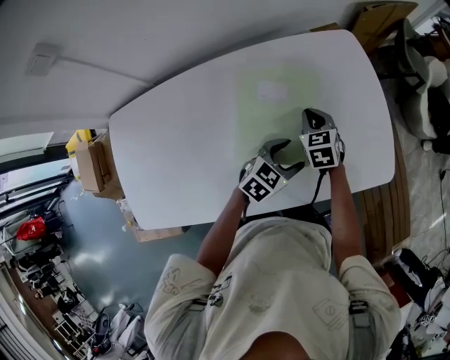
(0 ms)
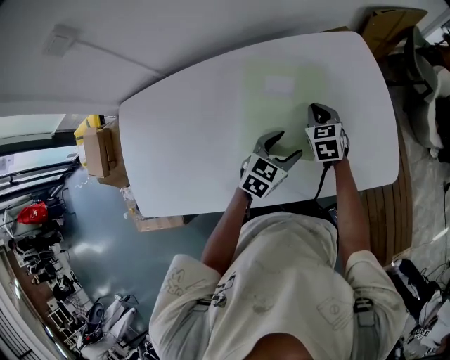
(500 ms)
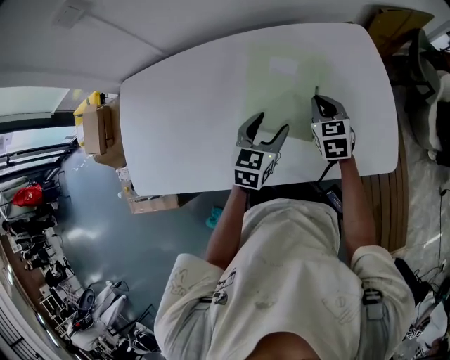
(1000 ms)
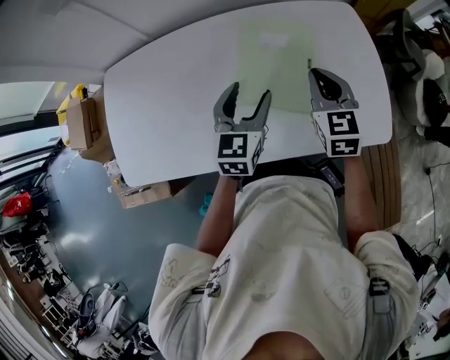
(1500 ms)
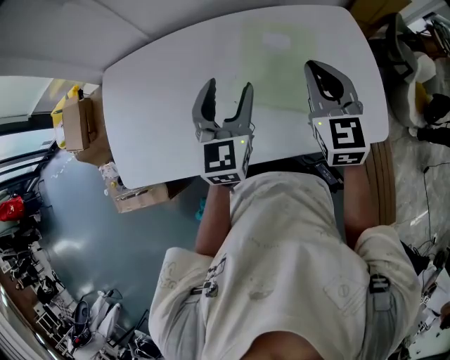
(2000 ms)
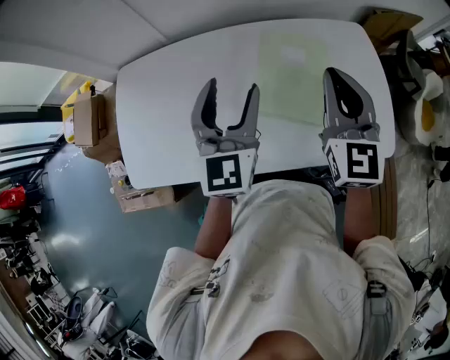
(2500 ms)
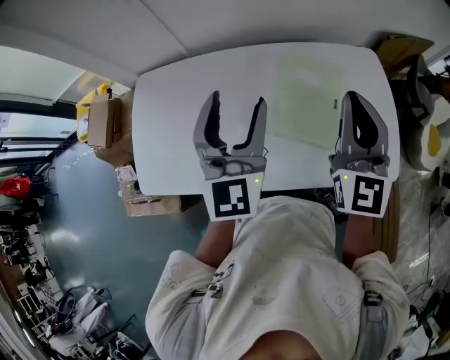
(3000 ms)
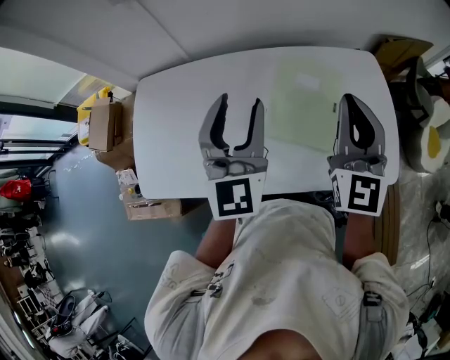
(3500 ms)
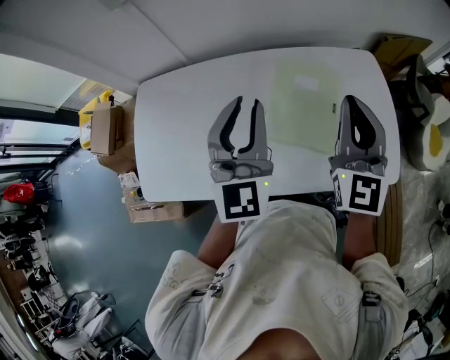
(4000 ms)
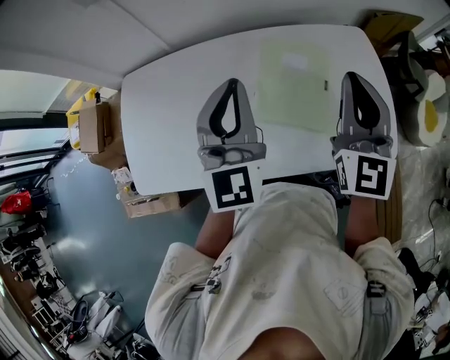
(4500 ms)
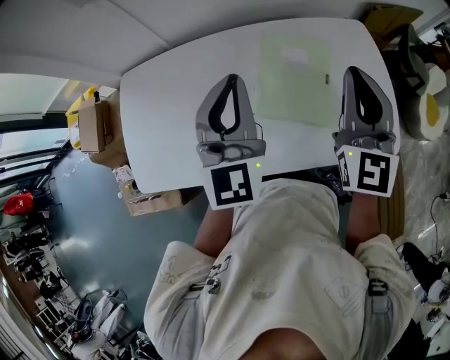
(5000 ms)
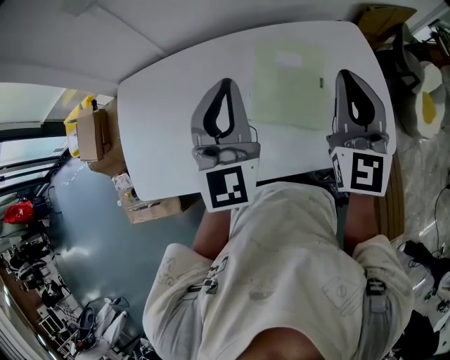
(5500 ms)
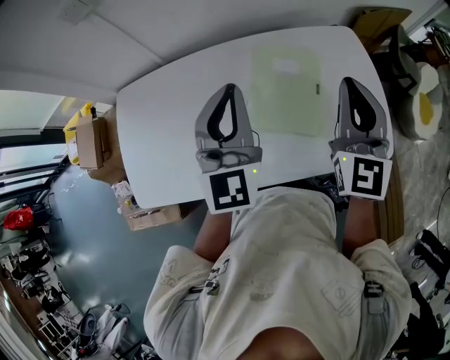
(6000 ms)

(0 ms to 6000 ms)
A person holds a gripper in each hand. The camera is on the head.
0 ms - 2000 ms: Both grippers move upward, about 20 cm. The left gripper rotates roughly 60 degrees. Meanwhile the right gripper swivels roughly 30 degrees.
2000 ms - 4000 ms: Both grippers travel together upward, about 10 cm. The left gripper closes up.
4000 ms - 6000 ms: The grippers move only a little.

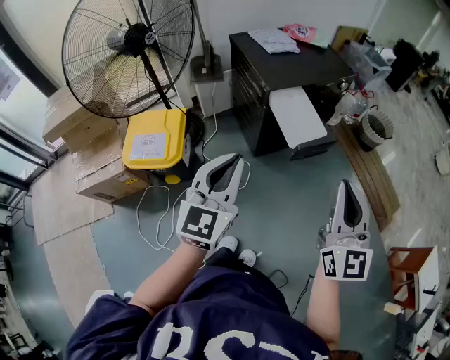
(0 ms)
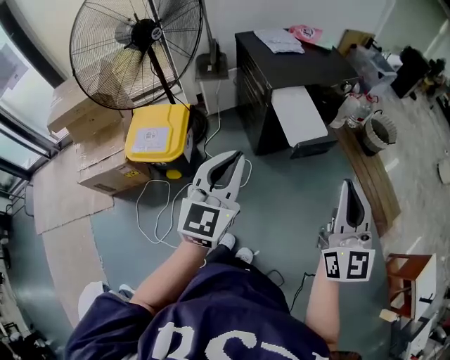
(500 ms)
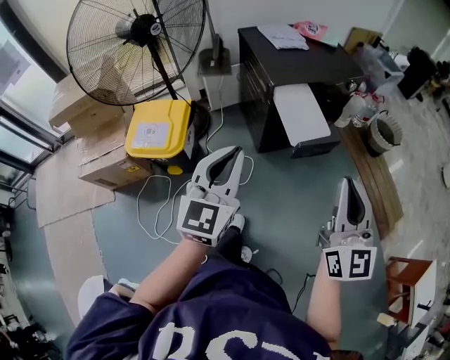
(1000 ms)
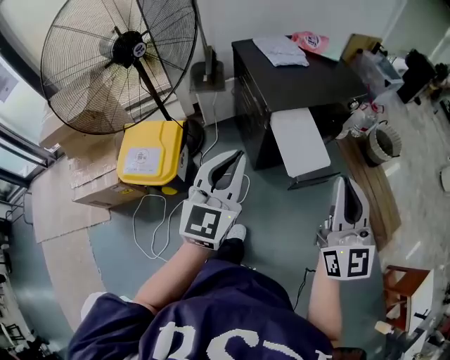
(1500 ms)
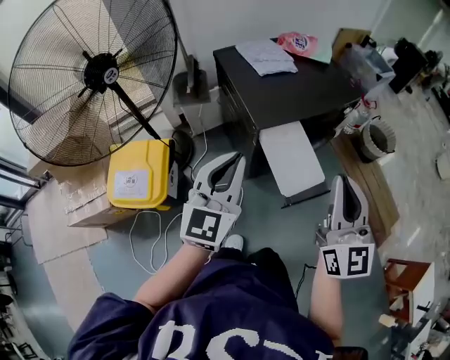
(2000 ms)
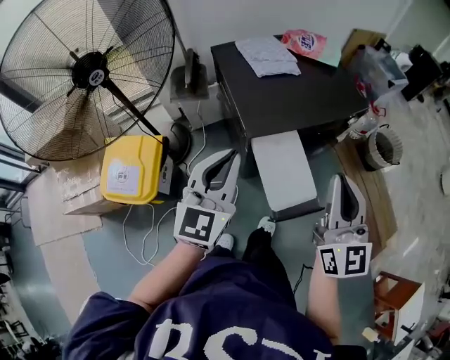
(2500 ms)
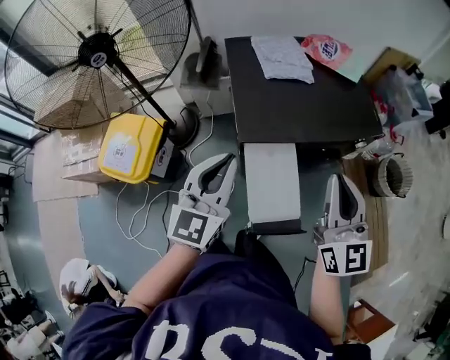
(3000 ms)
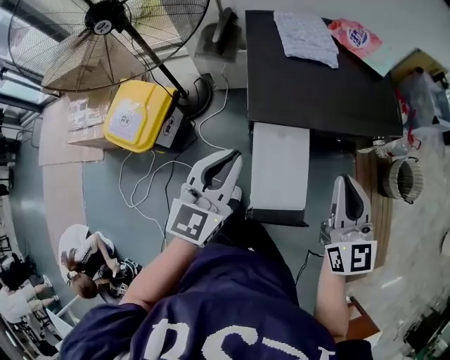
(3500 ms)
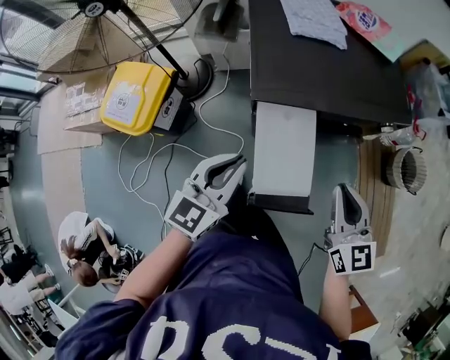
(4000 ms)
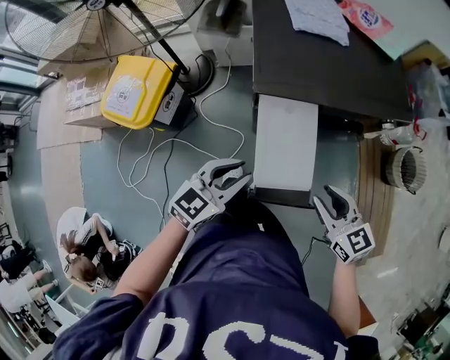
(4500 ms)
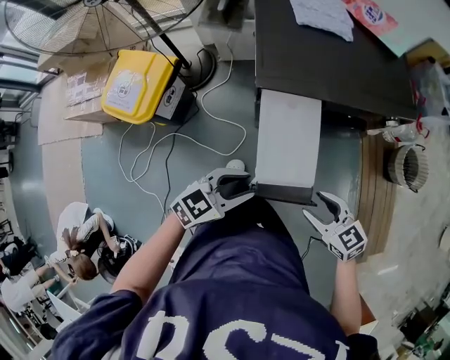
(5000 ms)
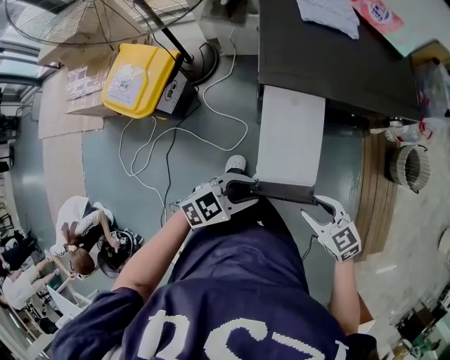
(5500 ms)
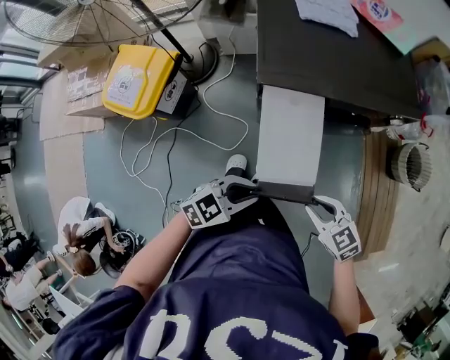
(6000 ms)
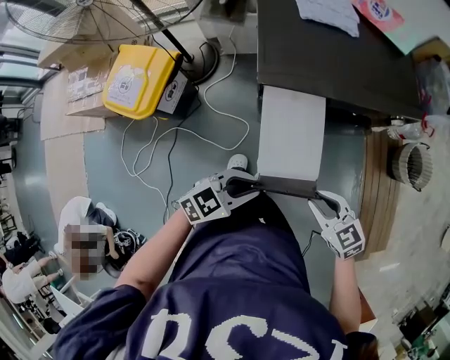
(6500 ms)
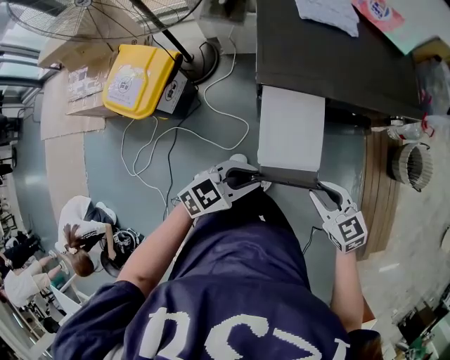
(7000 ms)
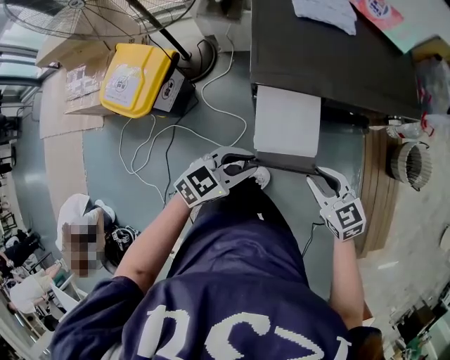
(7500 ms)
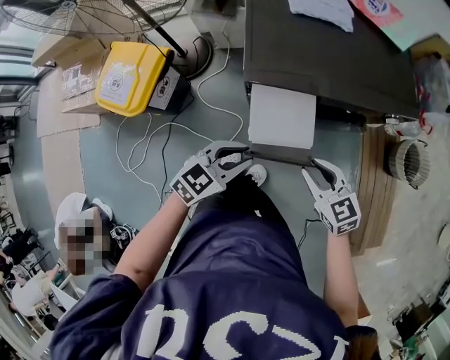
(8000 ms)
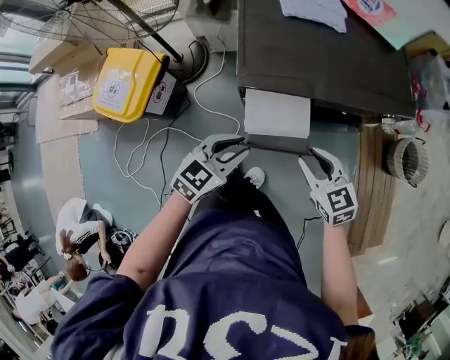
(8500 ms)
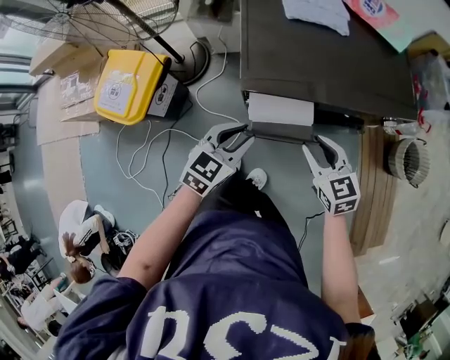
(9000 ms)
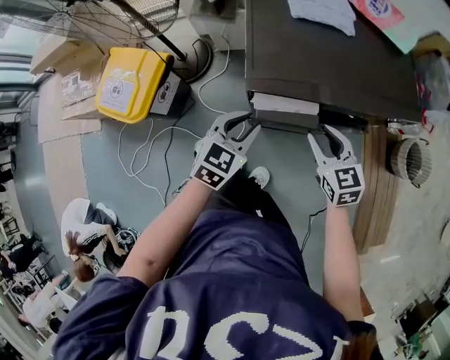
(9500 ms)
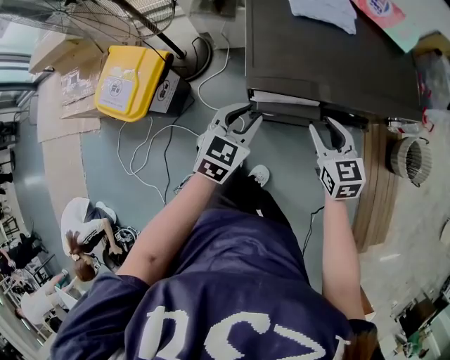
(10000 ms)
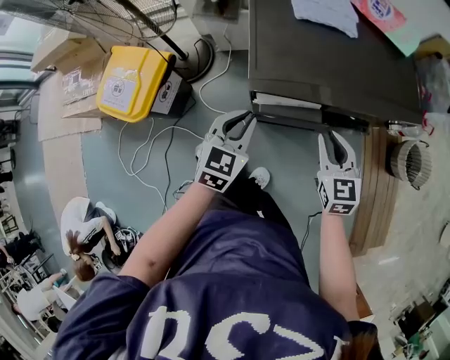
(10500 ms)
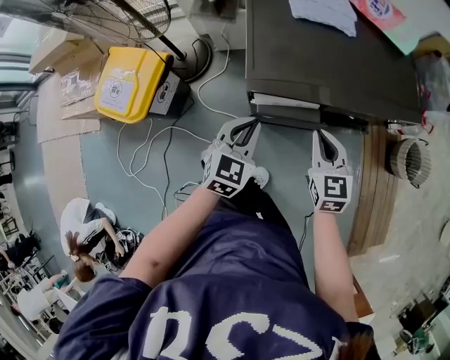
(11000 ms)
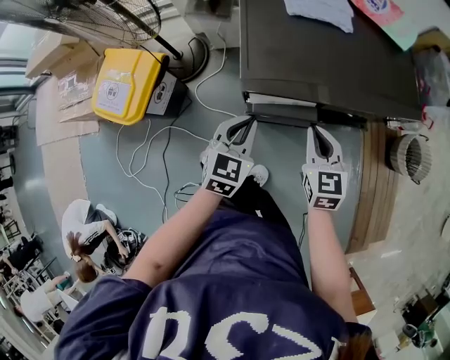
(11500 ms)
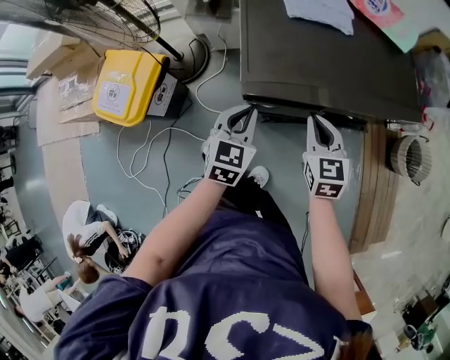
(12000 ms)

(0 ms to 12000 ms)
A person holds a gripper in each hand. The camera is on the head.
0 ms - 2000 ms: The two grippers go some 30 cm forward.
2000 ms - 4000 ms: The left gripper is displaced downward and to the right by some 25 cm, and swivels about 20 degrees. Meanwhile the right gripper goes about 30 cm downward, to the right and forward, and rotates roughly 40 degrees.
4000 ms - 6000 ms: Both grippers travel together downward, about 15 cm. The right gripper turns by about 40 degrees, and opens up, while the left gripper changes its angle by approximately 40 degrees.
6000 ms - 8000 ms: The left gripper shifts by some 10 cm; the right gripper shifts by roughly 10 cm.
8000 ms - 10000 ms: The two grippers go some 15 cm forward. The left gripper changes its angle by about 20 degrees.
10000 ms - 12000 ms: The right gripper closes up, while the left gripper closes its fingers.

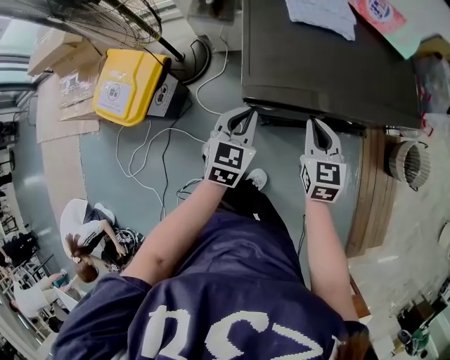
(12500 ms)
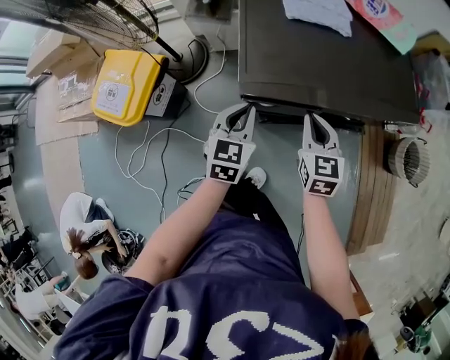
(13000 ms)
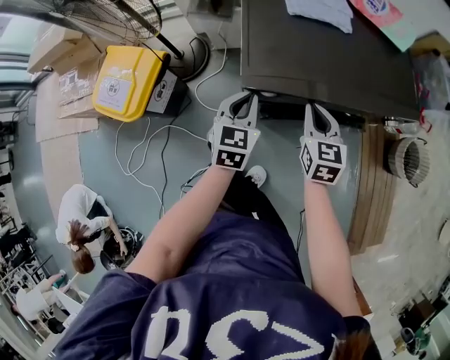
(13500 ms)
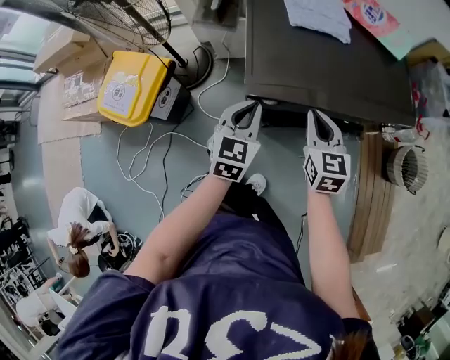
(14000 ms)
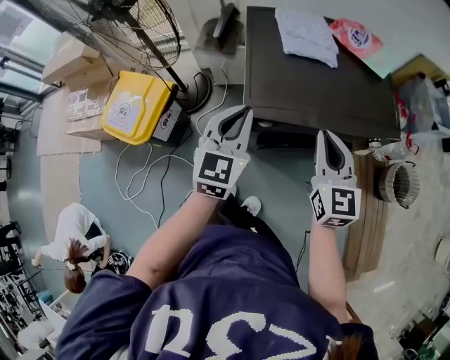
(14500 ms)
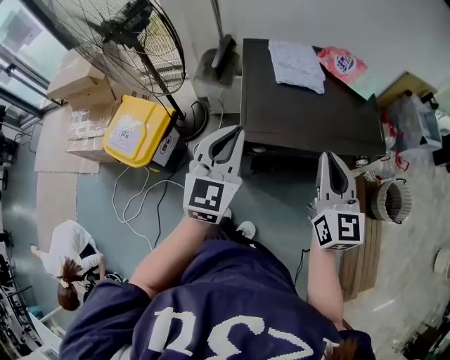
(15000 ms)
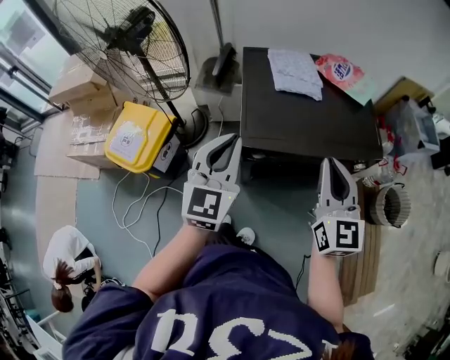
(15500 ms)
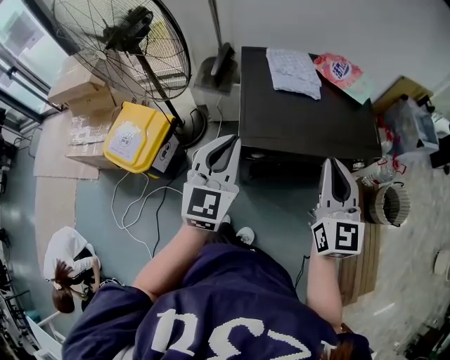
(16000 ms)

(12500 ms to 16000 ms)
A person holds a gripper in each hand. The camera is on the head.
12500 ms - 14500 ms: Both grippers move upward, approximately 15 cm.
14500 ms - 16000 ms: Both grippers move upward, approximately 10 cm.

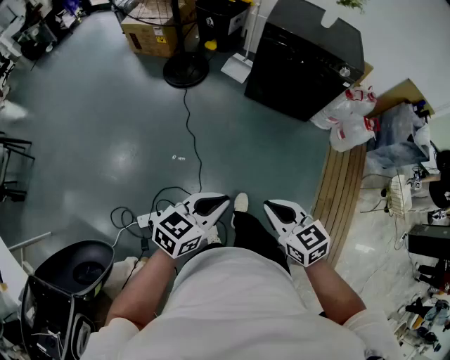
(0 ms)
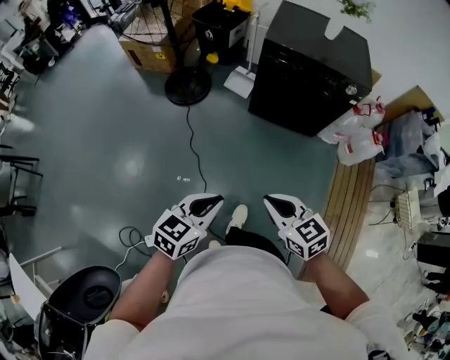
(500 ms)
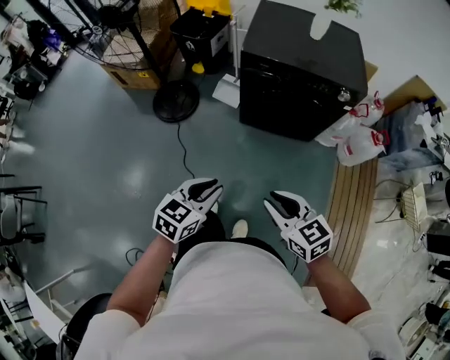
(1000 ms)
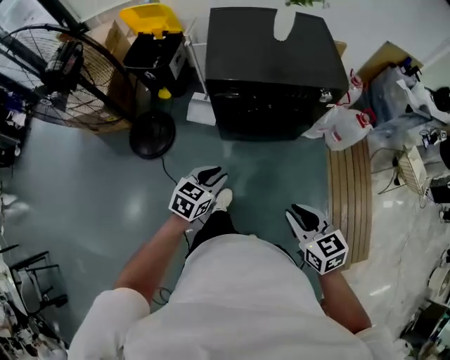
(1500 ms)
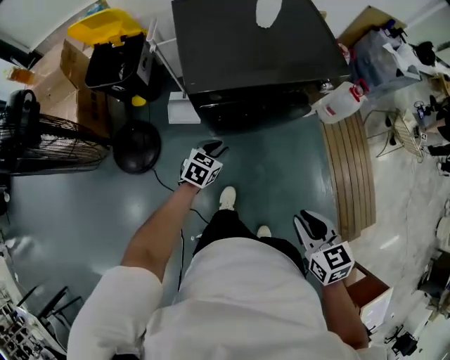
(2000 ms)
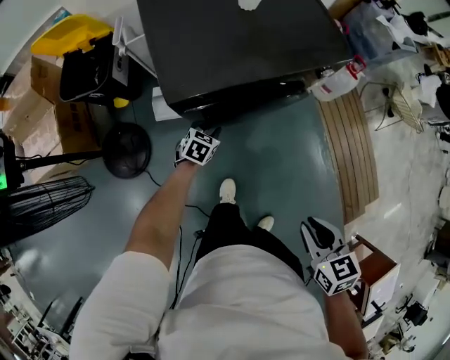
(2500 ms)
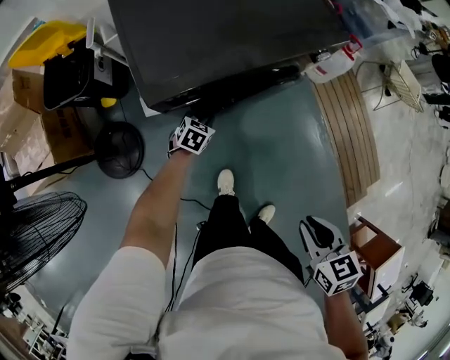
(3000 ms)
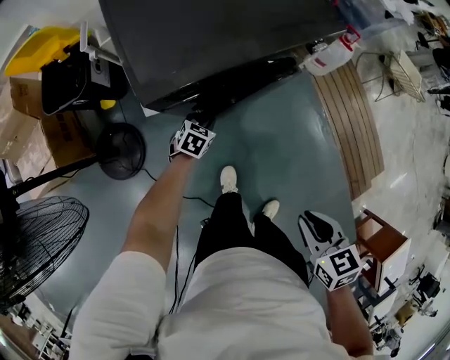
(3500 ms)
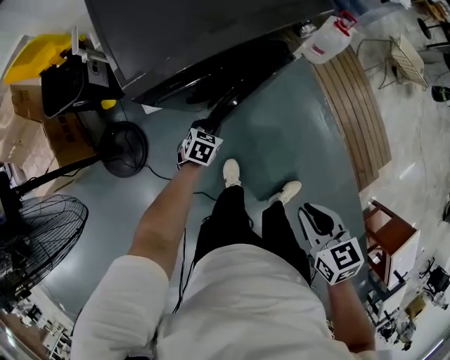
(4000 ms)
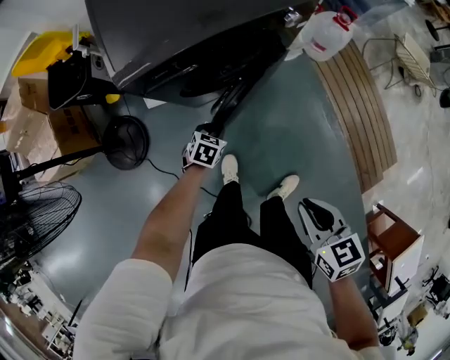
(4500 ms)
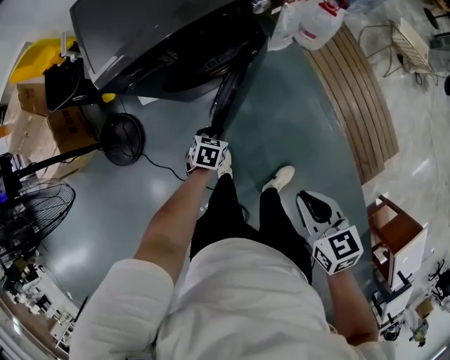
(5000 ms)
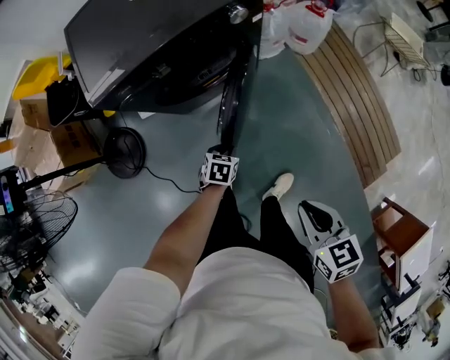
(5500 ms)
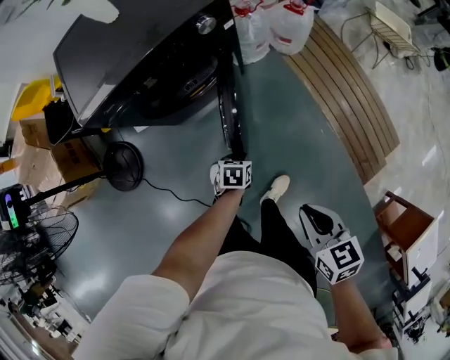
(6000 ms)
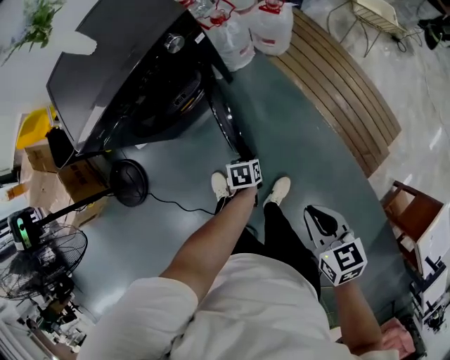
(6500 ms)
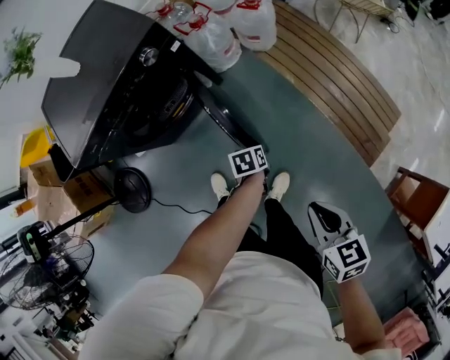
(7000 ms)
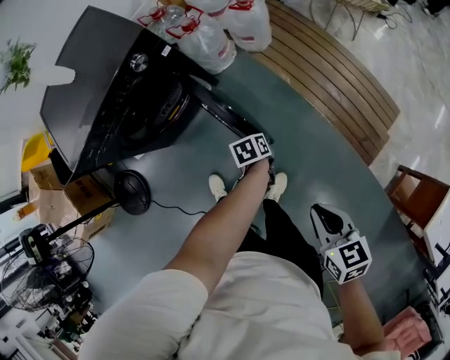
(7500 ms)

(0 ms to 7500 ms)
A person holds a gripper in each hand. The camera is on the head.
0 ms - 2000 ms: The two grippers travel together, approximately 50 cm. The right gripper changes its angle by roughly 50 degrees; the left gripper swivels approximately 40 degrees.
2000 ms - 4000 ms: The left gripper goes approximately 15 cm downward. The right gripper moves downward, approximately 5 cm.
4000 ms - 5500 ms: The left gripper heads to the right and backward, covering about 20 cm. The right gripper is displaced to the right by roughly 15 cm.
5500 ms - 7500 ms: Both grippers move to the right, roughly 25 cm. The left gripper changes its angle by about 30 degrees.
